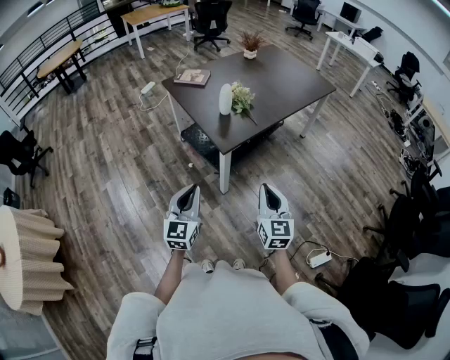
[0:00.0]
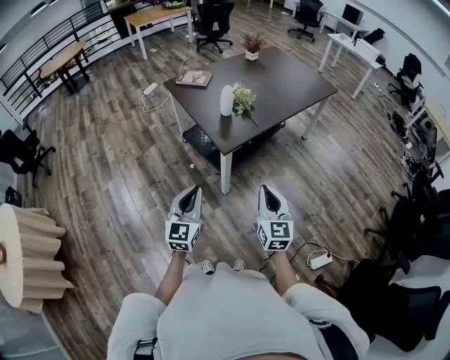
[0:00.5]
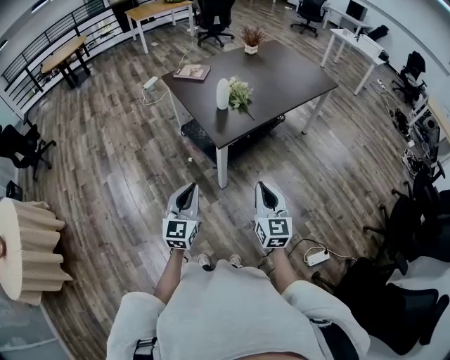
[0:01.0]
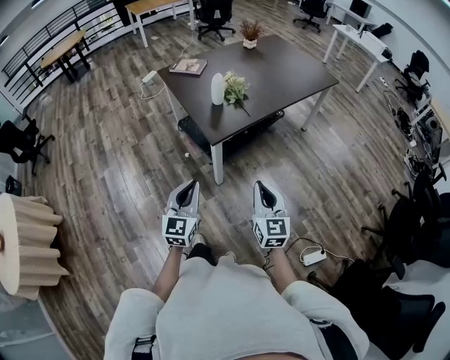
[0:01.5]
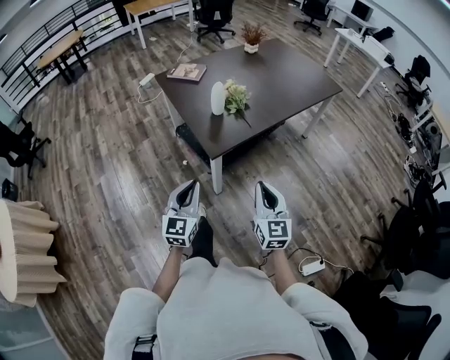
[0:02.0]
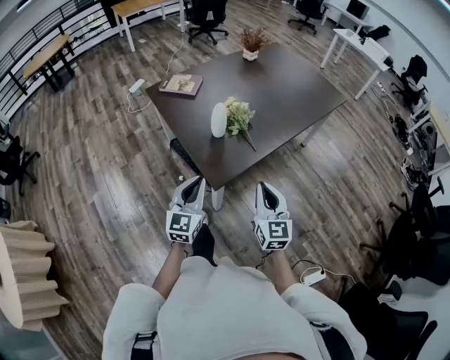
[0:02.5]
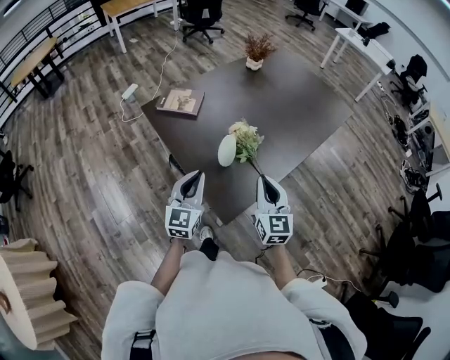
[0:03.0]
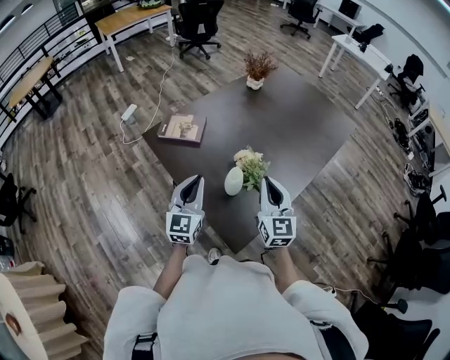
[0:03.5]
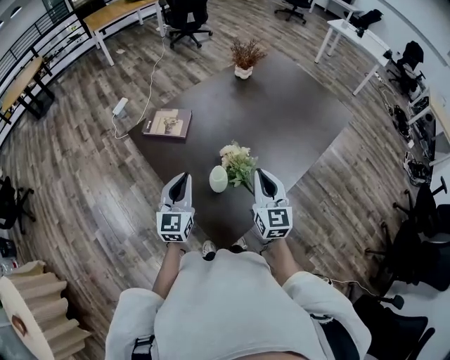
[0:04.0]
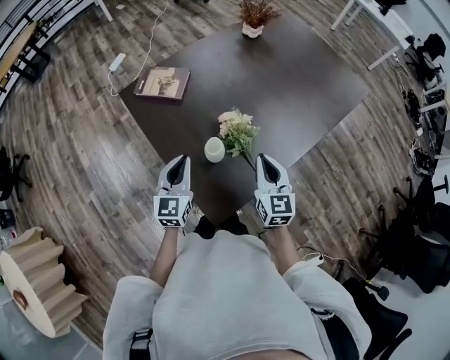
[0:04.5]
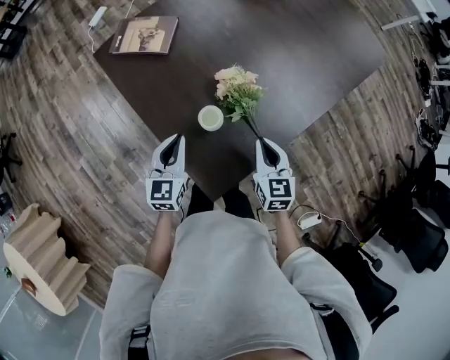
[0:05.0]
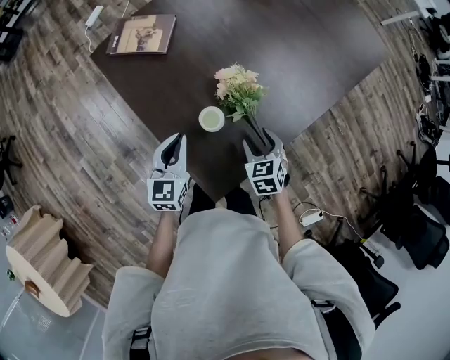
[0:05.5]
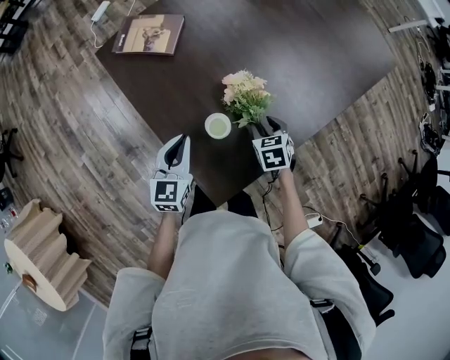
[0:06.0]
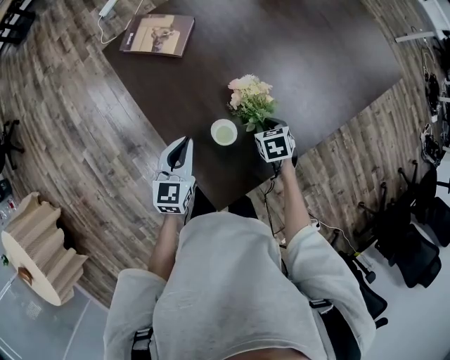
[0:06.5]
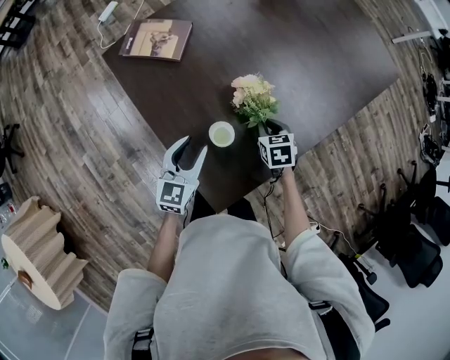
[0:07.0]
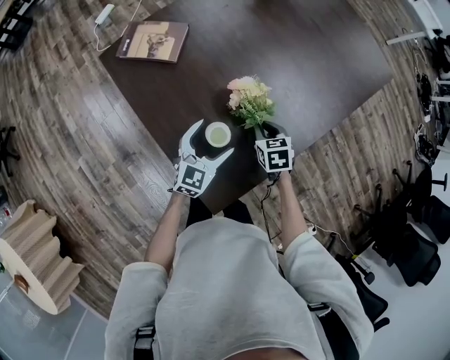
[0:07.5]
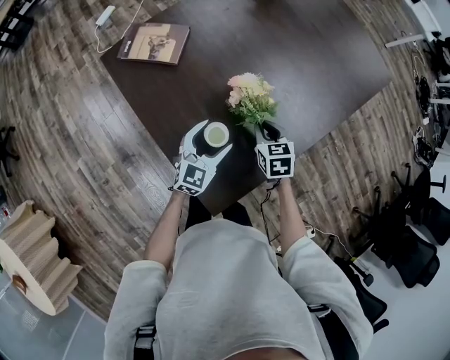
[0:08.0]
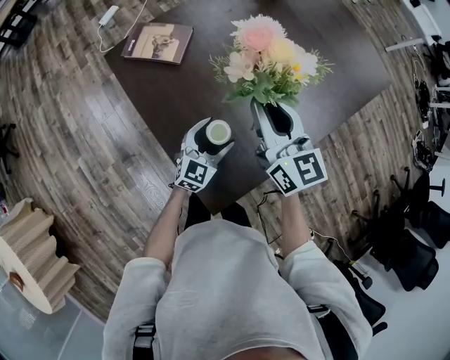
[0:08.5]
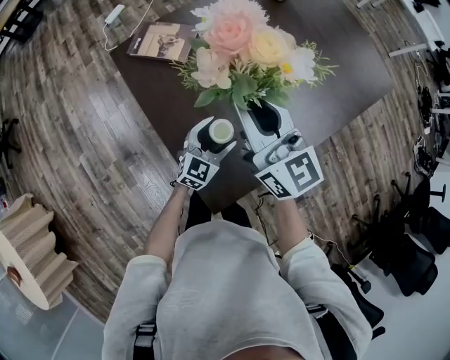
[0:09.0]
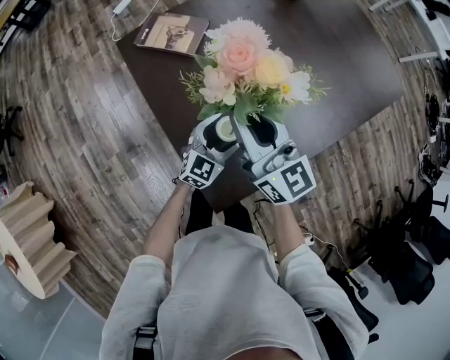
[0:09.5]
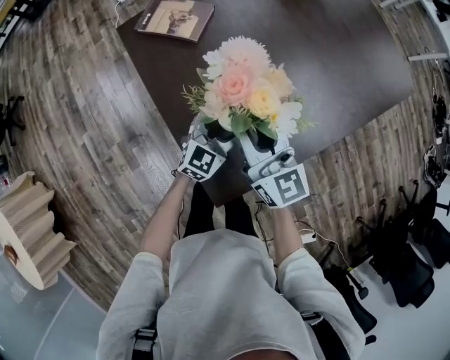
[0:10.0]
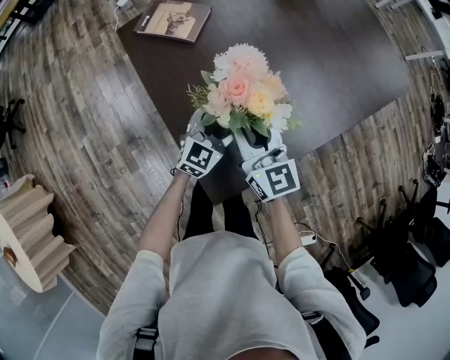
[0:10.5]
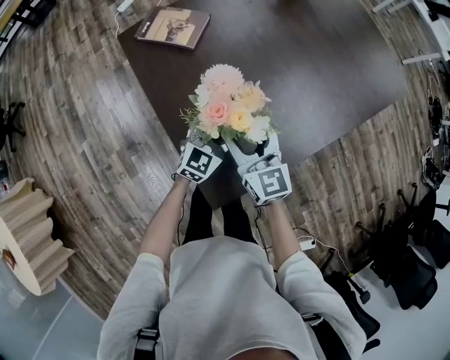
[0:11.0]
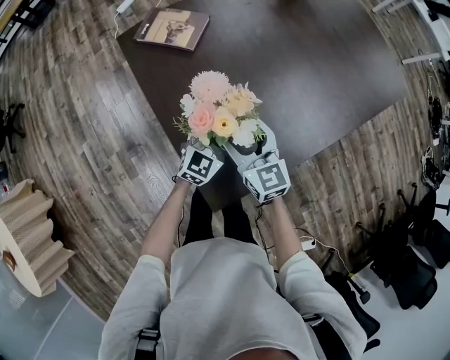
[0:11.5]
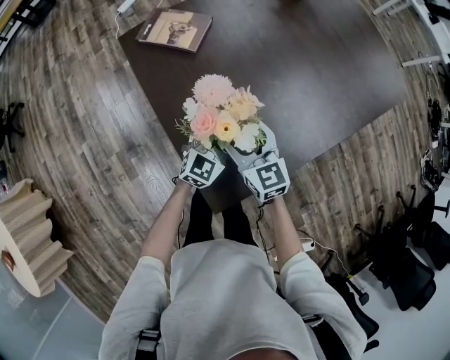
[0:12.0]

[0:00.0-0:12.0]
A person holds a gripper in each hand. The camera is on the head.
0:00.0 to 0:02.0: The left gripper shifts approximately 10 cm forward and to the right; the right gripper travels forward by roughly 10 cm.
0:02.0 to 0:04.0: The two grippers travel together, forward, some 50 cm.
0:04.0 to 0:06.0: The left gripper shifts roughly 15 cm downward, and turns by about 20 degrees. Meanwhile the right gripper moves downward, some 30 cm, angles its fingers downward, by some 50 degrees, and opens its fingers.
0:06.0 to 0:08.0: The left gripper goes approximately 10 cm to the right, turns by some 20 degrees, and opens up. The right gripper ends up some 5 cm from where it was, and closes its fingers.
0:08.0 to 0:10.0: The right gripper heads upward and to the left, covering approximately 20 cm, and tilts its fingers approximately 50 degrees upward.
0:10.0 to 0:12.0: The right gripper goes roughly 10 cm downward, and opens up.

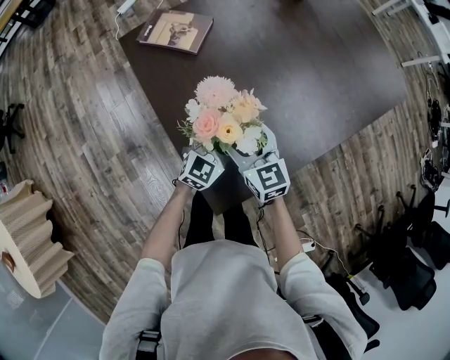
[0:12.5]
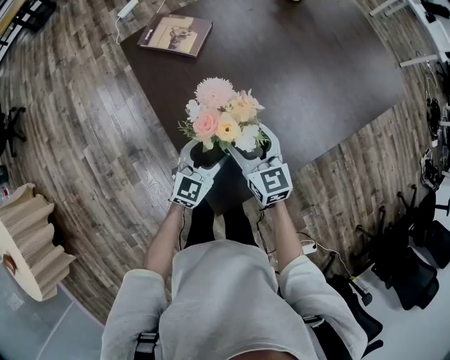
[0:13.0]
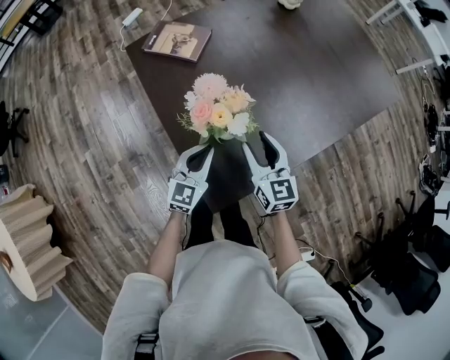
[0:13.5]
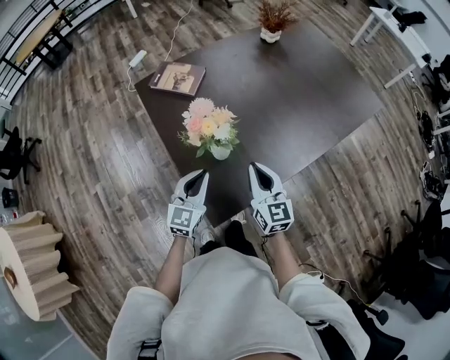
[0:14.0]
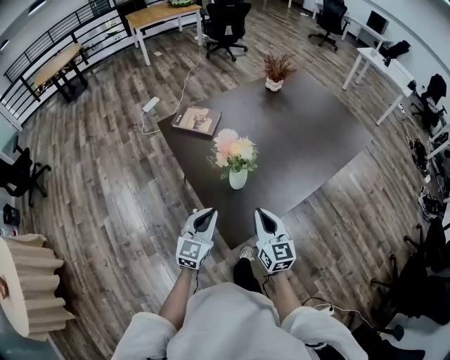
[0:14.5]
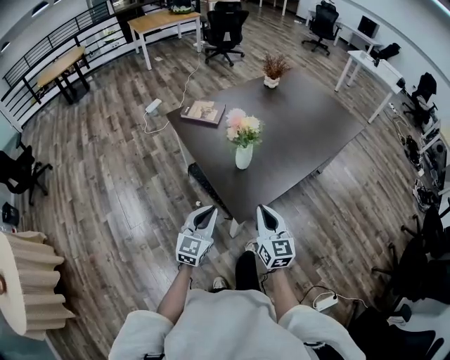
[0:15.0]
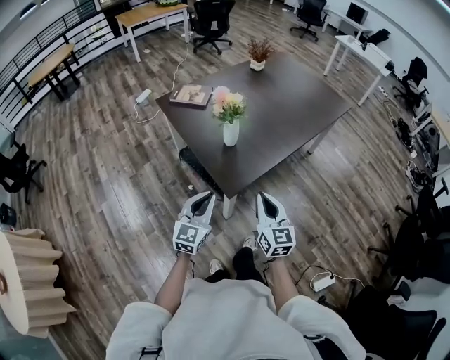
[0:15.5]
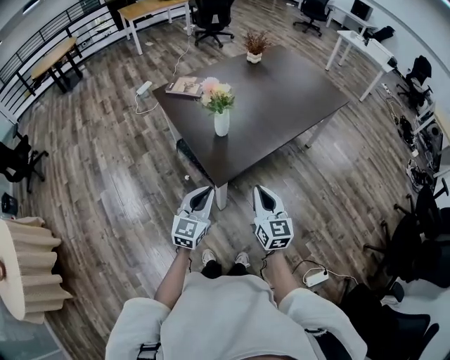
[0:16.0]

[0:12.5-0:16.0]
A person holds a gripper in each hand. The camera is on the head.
0:12.5 to 0:14.5: The left gripper goes about 25 cm backward, upward and to the left, and closes; the right gripper heads backward and upward, covering roughly 20 cm, and closes its fingers.
0:14.5 to 0:16.0: Both grippers move backward, approximately 20 cm.

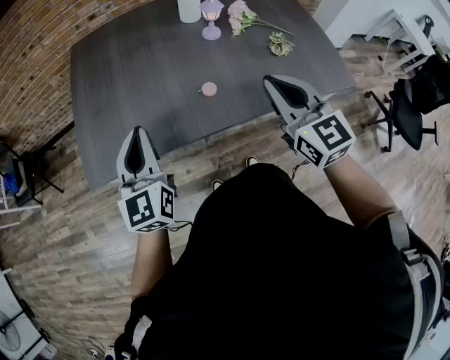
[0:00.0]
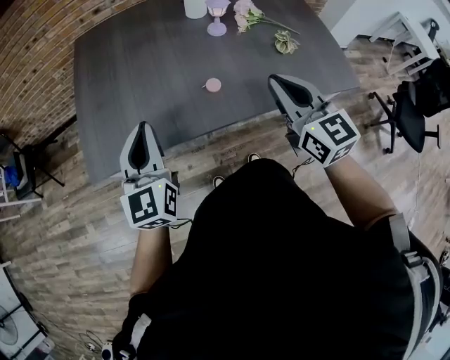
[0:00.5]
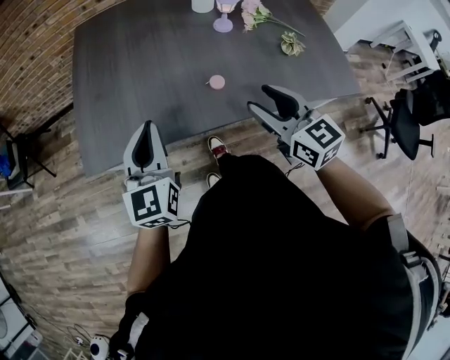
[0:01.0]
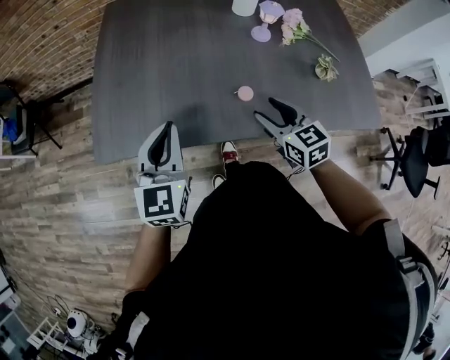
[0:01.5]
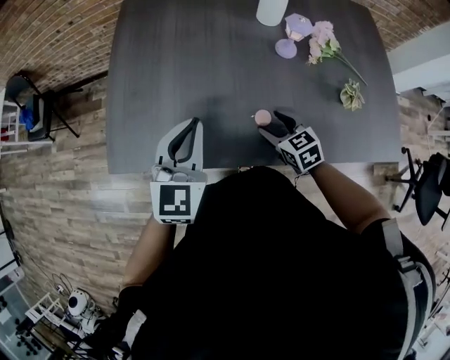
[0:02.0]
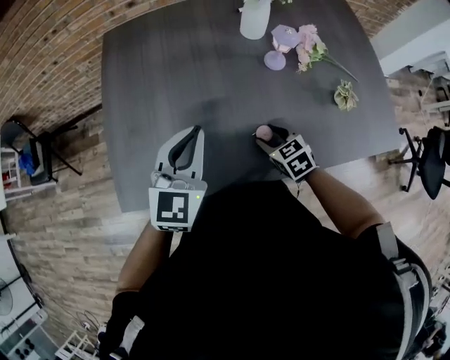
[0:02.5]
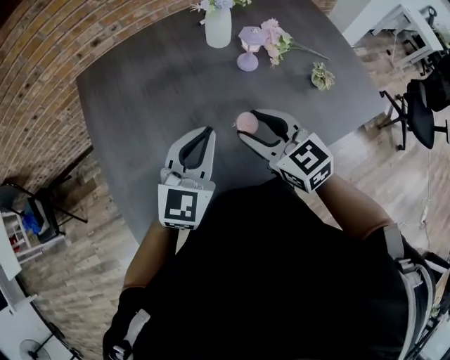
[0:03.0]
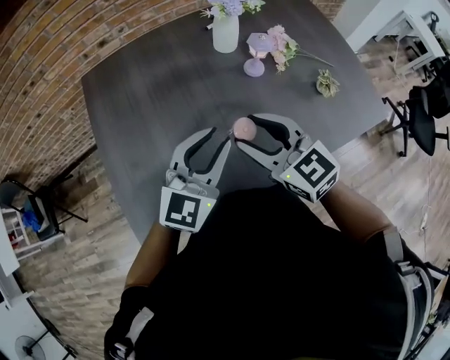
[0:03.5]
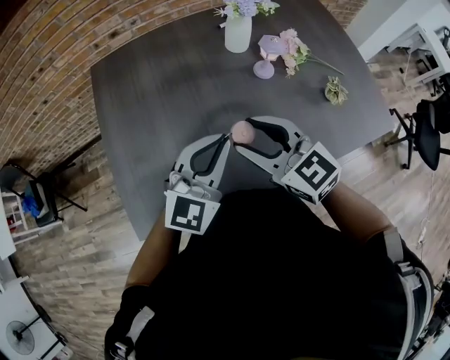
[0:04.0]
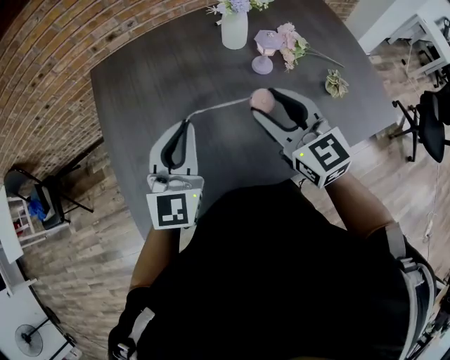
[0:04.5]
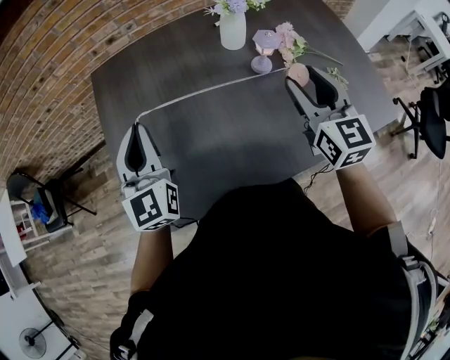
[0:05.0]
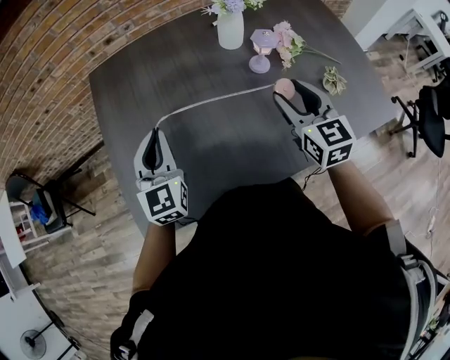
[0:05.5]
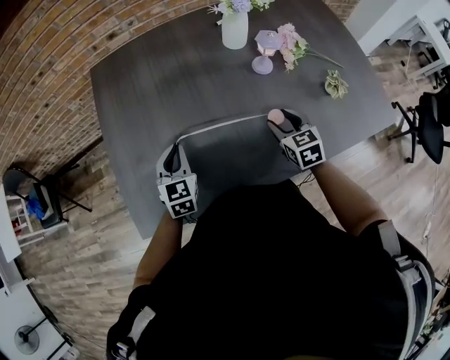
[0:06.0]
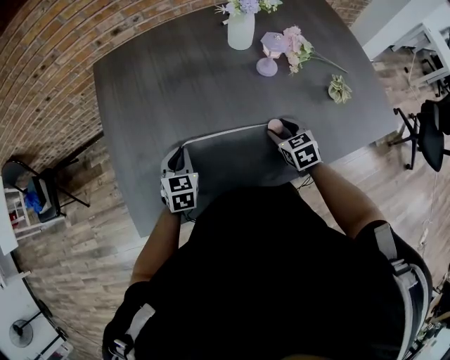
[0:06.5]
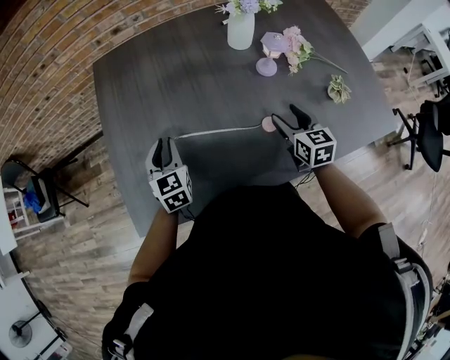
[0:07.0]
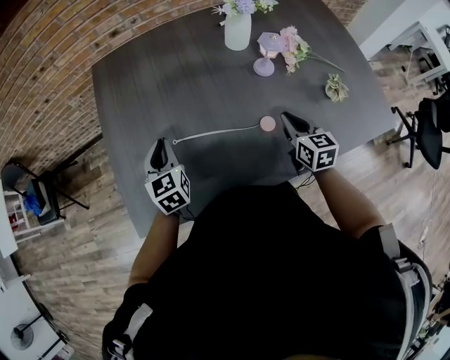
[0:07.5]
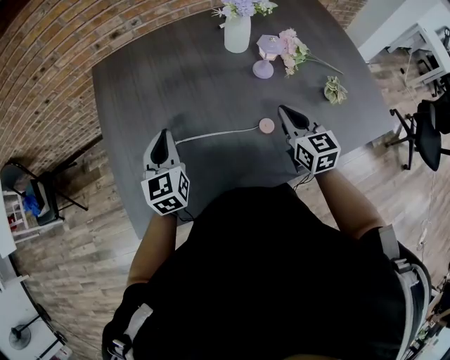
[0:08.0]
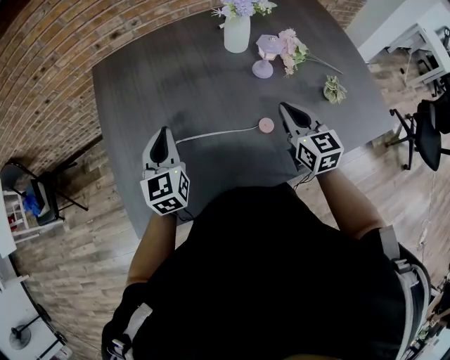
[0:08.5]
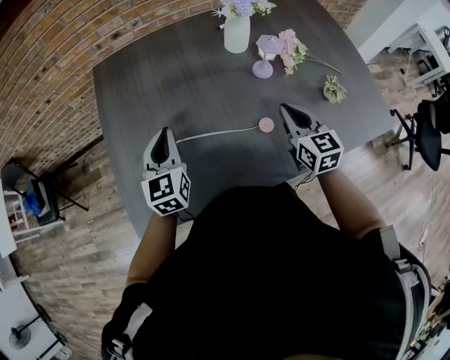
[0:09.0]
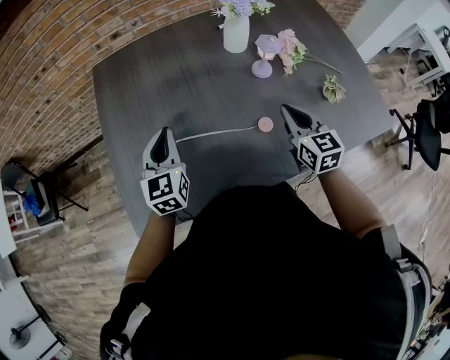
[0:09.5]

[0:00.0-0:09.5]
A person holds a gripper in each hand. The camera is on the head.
0:00.0 to 0:02.0: The right gripper goes approximately 30 cm downward and forward, angles its fingers downward, by about 30 degrees, and opens its fingers. Meanwhile the left gripper is displaced forward and to the right by some 10 cm.
0:02.0 to 0:04.0: The left gripper changes place by about 5 cm, and rotates some 40 degrees. The right gripper goes some 20 cm upward, and rotates roughly 20 degrees.
0:04.0 to 0:05.5: The left gripper heads to the left and forward, covering roughly 15 cm, and turns by about 40 degrees. The right gripper goes about 15 cm to the right and forward, and swivels about 30 degrees.
0:05.5 to 0:07.5: The grippers both shift downward by approximately 10 cm. The left gripper rotates approximately 20 degrees. Meanwhile the right gripper closes up.
0:07.5 to 0:09.5: Both grippers move upward, roughly 5 cm.

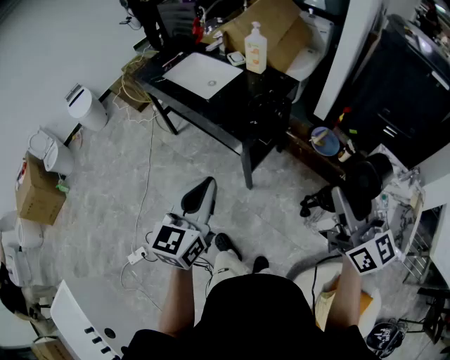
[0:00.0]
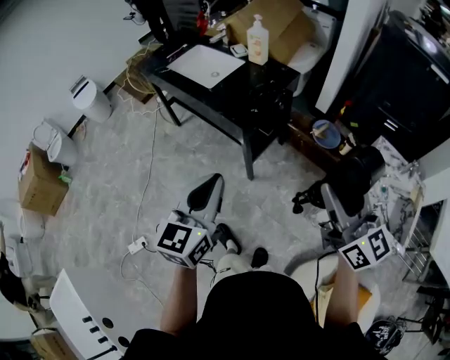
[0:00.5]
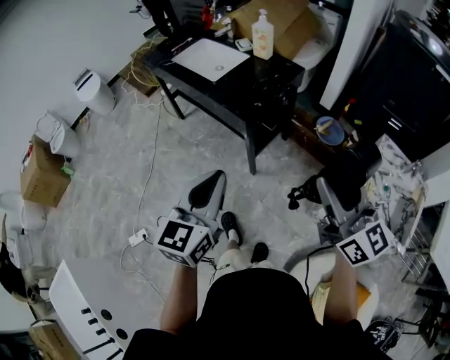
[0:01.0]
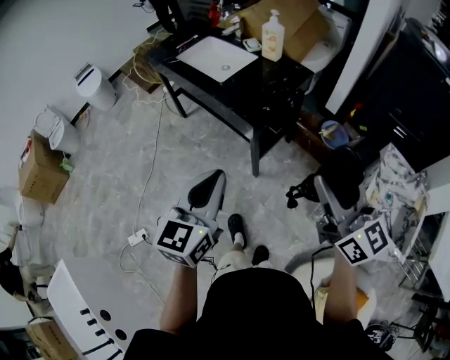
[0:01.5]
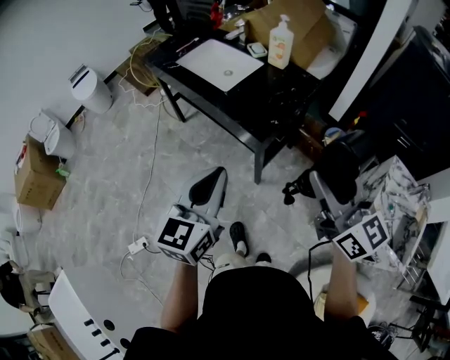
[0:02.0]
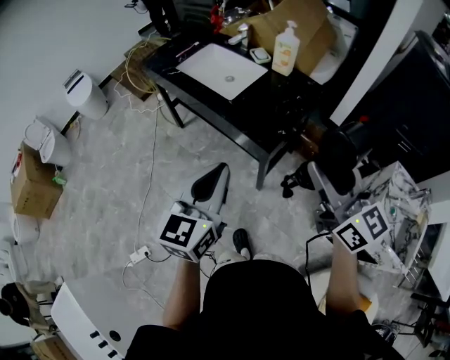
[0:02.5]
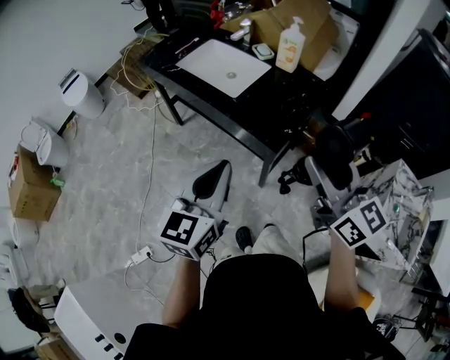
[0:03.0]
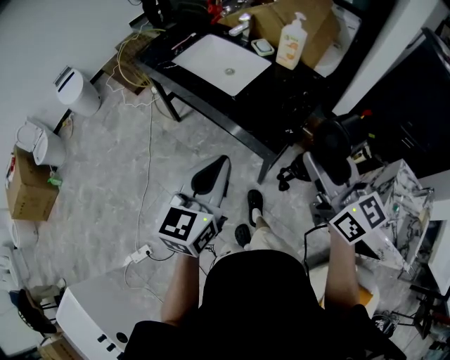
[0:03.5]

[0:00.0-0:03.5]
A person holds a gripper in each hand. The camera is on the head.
0:00.0 to 0:02.0: The right gripper moves to the left and forward, some 15 cm; the left gripper shifts about 5 cm forward.
0:02.0 to 0:03.5: Both grippers move forward and to the left, roughly 15 cm.
